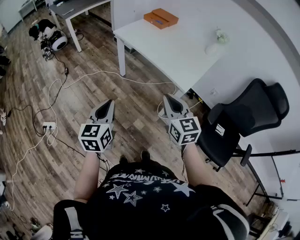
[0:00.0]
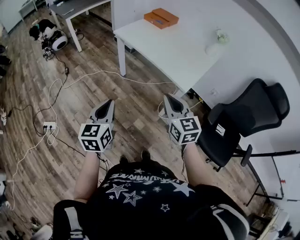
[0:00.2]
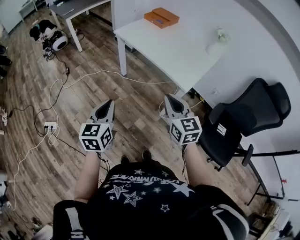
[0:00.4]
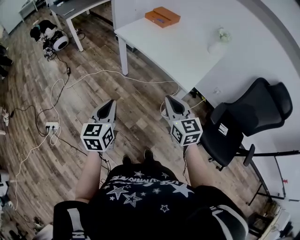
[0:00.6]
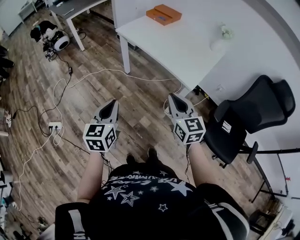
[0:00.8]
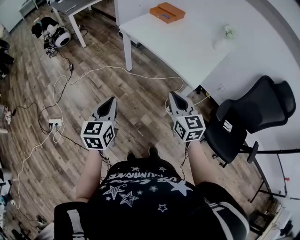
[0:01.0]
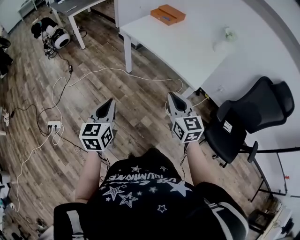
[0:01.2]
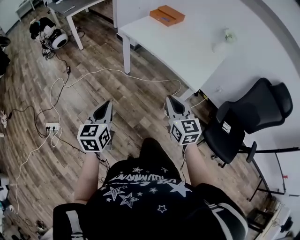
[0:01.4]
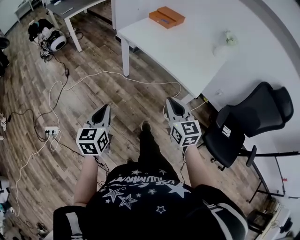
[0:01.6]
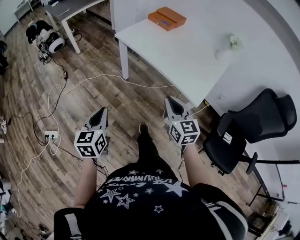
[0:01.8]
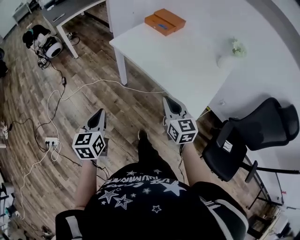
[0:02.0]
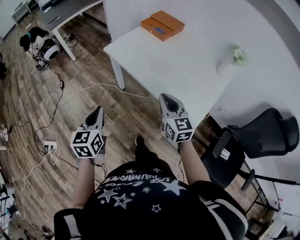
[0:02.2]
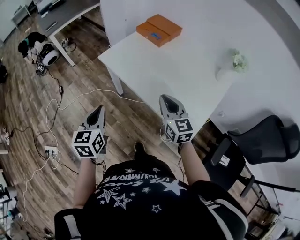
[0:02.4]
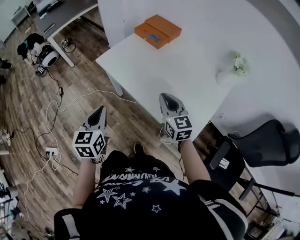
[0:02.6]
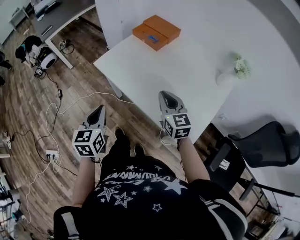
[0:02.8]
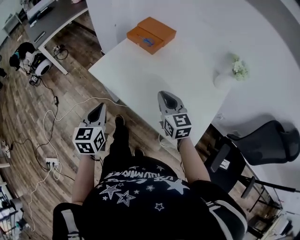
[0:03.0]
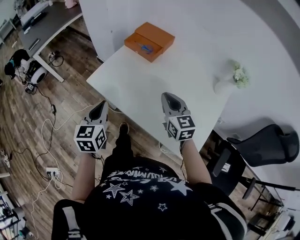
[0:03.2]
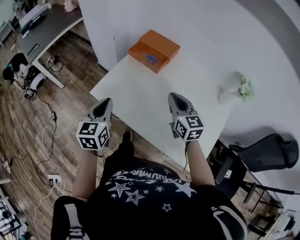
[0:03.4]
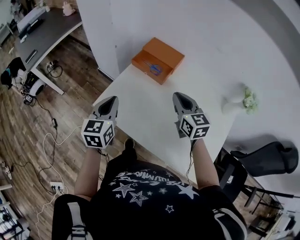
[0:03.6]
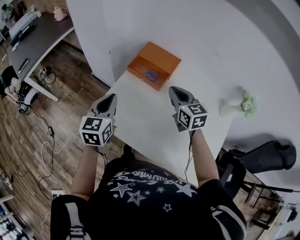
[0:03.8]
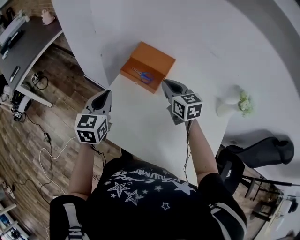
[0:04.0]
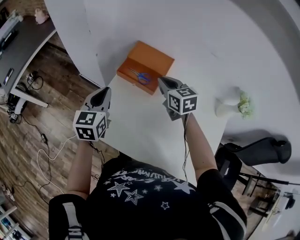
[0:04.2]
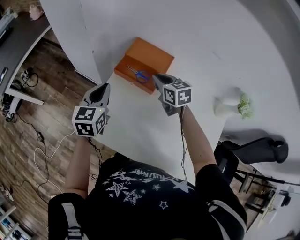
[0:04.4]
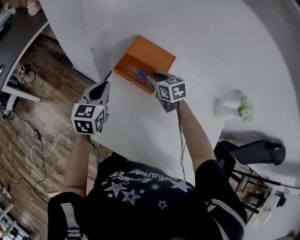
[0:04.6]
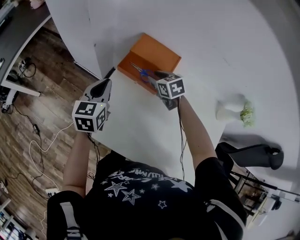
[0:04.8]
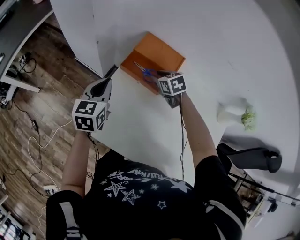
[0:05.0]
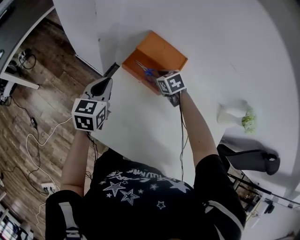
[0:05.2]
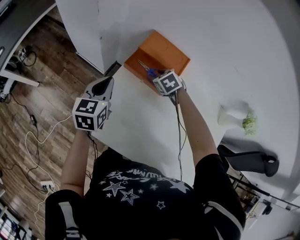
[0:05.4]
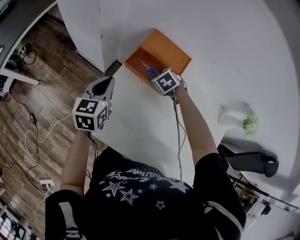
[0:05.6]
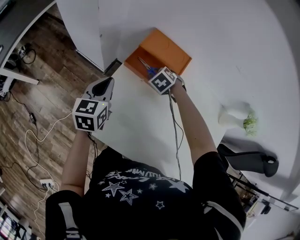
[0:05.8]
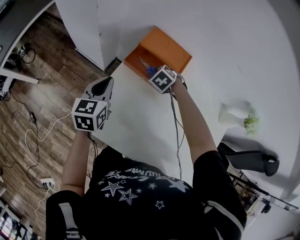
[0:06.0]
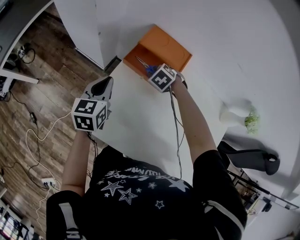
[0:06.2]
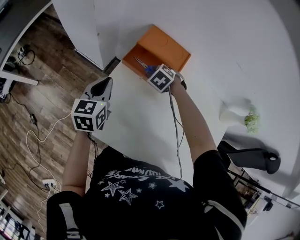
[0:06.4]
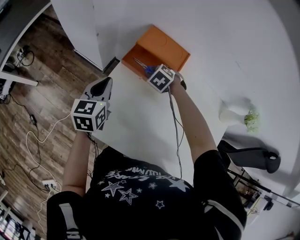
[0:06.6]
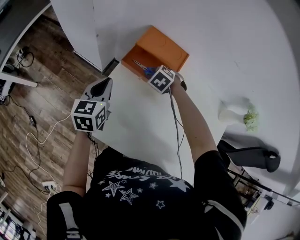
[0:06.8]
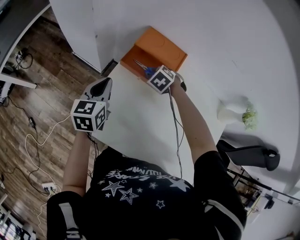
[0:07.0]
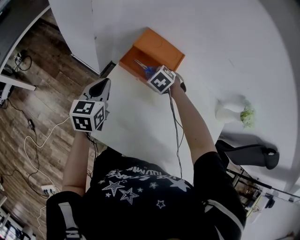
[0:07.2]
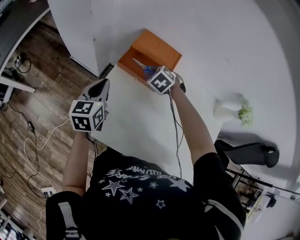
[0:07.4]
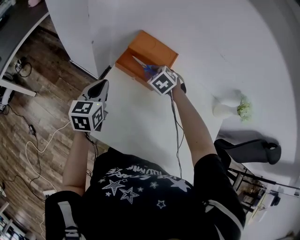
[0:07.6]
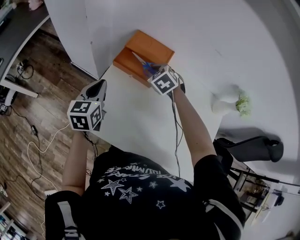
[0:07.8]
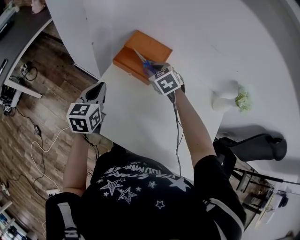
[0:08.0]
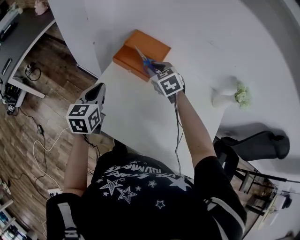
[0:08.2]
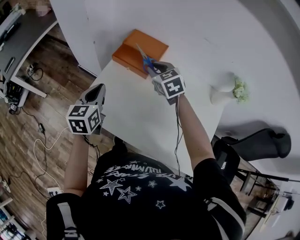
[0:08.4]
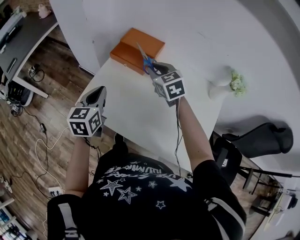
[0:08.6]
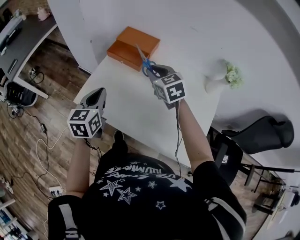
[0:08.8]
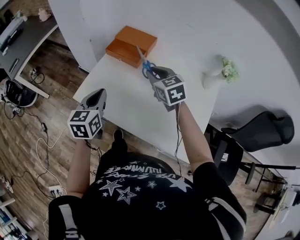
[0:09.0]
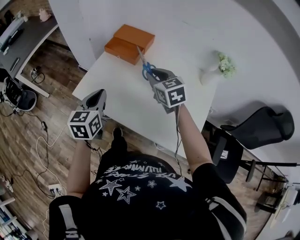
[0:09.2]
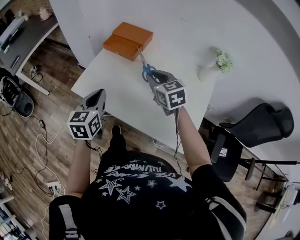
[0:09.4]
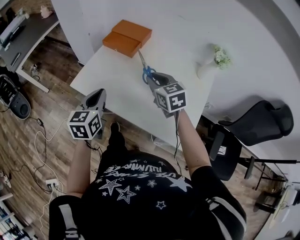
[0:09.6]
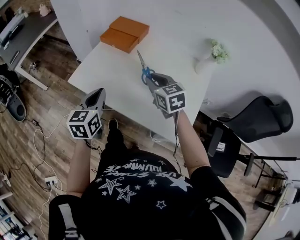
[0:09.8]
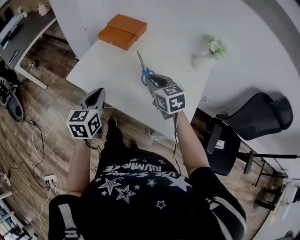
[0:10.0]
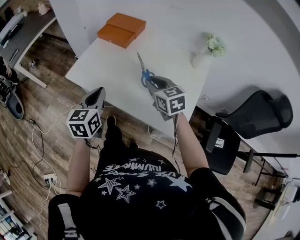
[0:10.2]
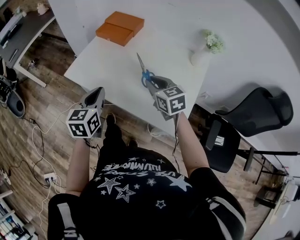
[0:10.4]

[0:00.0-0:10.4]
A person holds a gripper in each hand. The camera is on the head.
0:00.0 to 0:01.4: The grippers both shift to the left by roughly 10 cm.
0:01.4 to 0:03.0: The two grippers travel together, forward, about 50 cm.
0:03.0 to 0:04.4: Both grippers are carried forward, some 40 cm.
0:04.4 to 0:06.0: The left gripper shifts about 10 cm downward. The right gripper is displaced downward by approximately 15 cm, and tilts its fingers some 40 degrees downward.
0:06.0 to 0:07.4: The right gripper moves upward, approximately 5 cm.
0:07.4 to 0:09.0: The left gripper shifts about 30 cm backward and to the right, while the right gripper goes about 30 cm backward and upward, and angles its fingers upward, by approximately 40 degrees.
0:09.0 to 0:10.4: The left gripper heads backward and to the right, covering roughly 20 cm; the right gripper travels backward by roughly 20 cm.

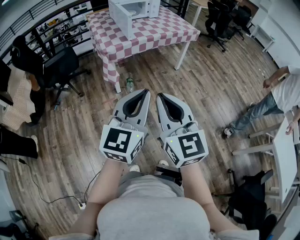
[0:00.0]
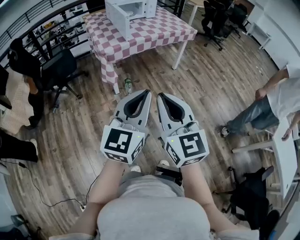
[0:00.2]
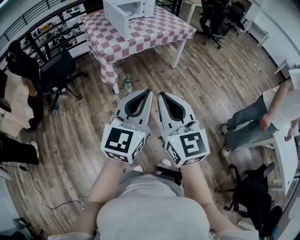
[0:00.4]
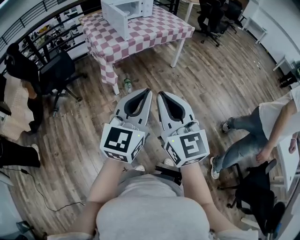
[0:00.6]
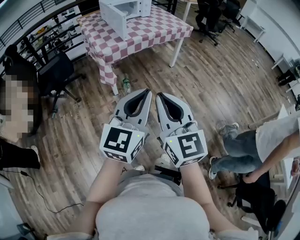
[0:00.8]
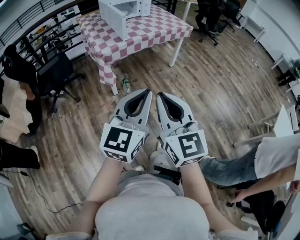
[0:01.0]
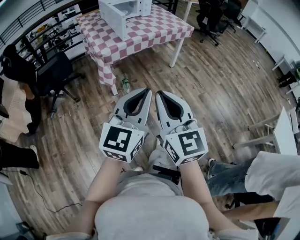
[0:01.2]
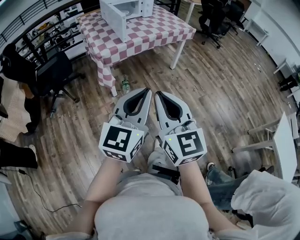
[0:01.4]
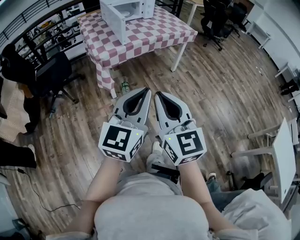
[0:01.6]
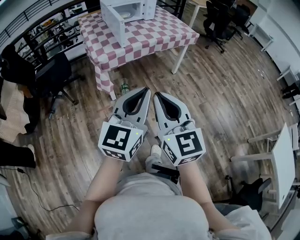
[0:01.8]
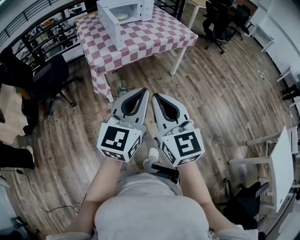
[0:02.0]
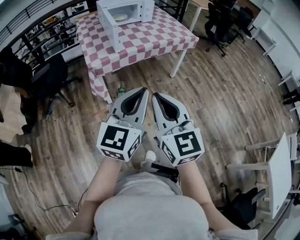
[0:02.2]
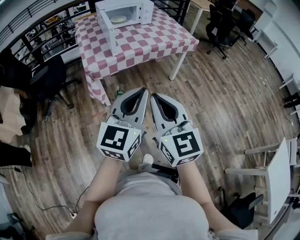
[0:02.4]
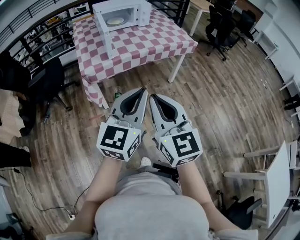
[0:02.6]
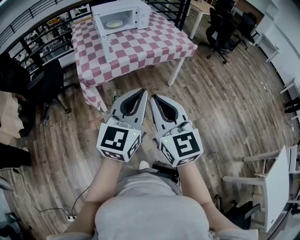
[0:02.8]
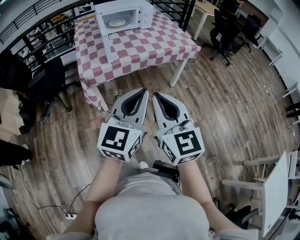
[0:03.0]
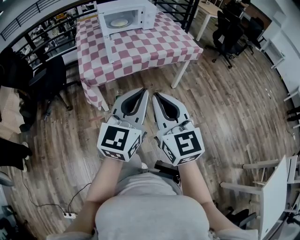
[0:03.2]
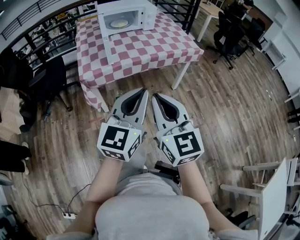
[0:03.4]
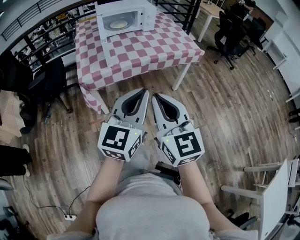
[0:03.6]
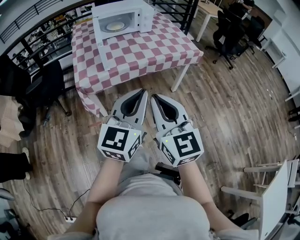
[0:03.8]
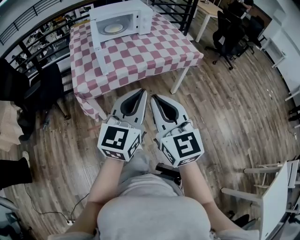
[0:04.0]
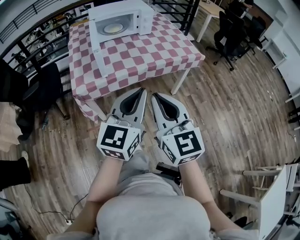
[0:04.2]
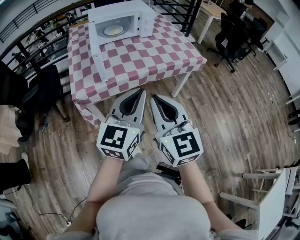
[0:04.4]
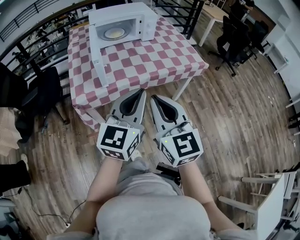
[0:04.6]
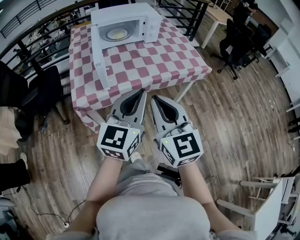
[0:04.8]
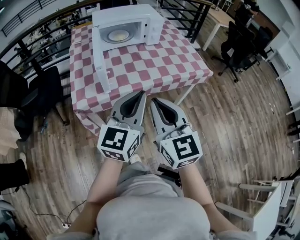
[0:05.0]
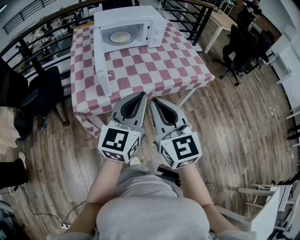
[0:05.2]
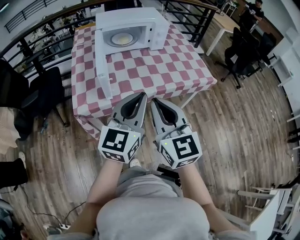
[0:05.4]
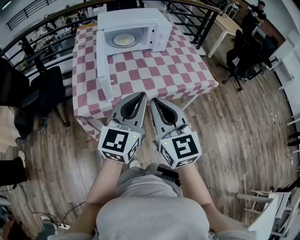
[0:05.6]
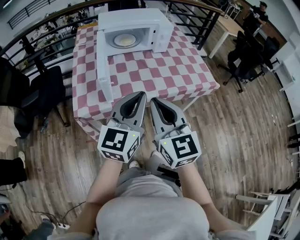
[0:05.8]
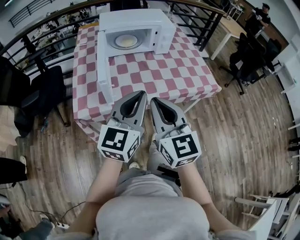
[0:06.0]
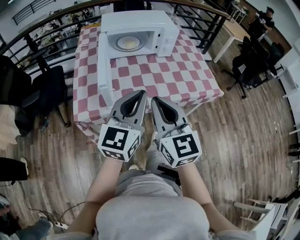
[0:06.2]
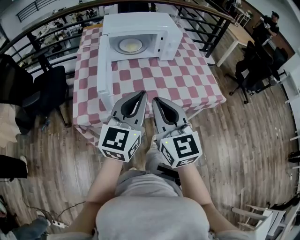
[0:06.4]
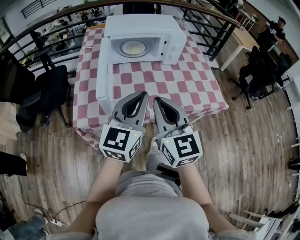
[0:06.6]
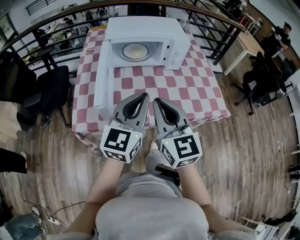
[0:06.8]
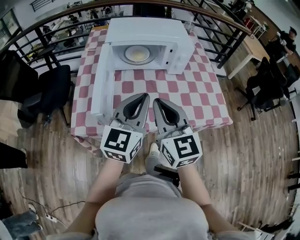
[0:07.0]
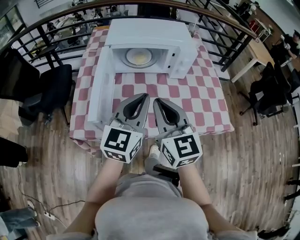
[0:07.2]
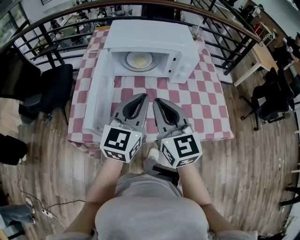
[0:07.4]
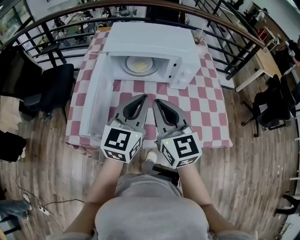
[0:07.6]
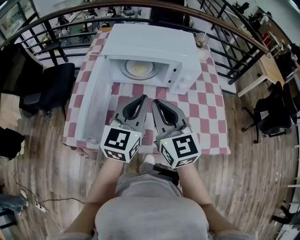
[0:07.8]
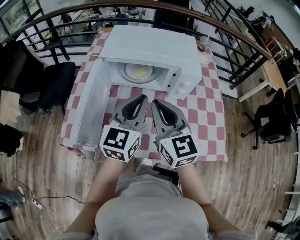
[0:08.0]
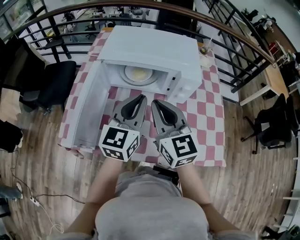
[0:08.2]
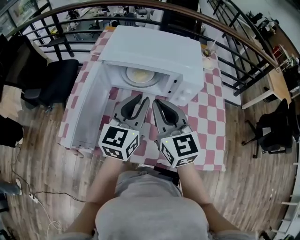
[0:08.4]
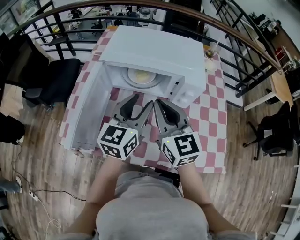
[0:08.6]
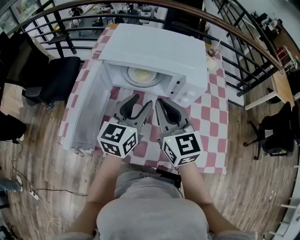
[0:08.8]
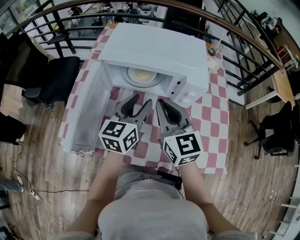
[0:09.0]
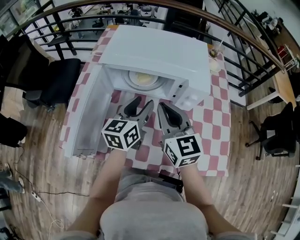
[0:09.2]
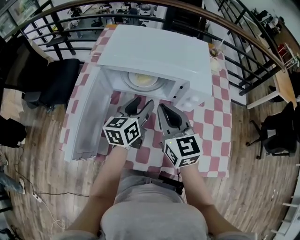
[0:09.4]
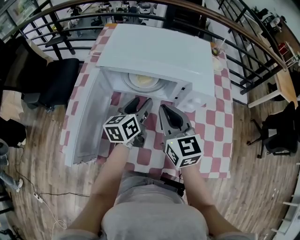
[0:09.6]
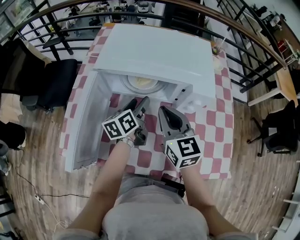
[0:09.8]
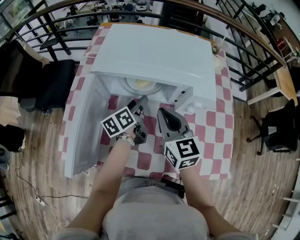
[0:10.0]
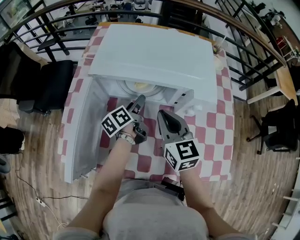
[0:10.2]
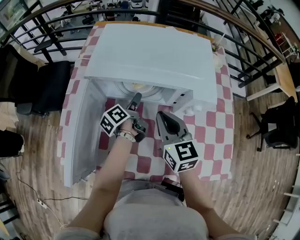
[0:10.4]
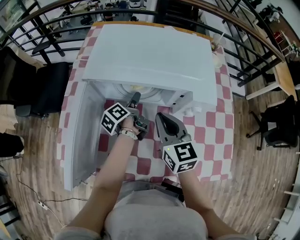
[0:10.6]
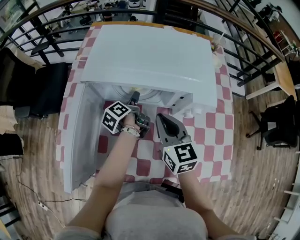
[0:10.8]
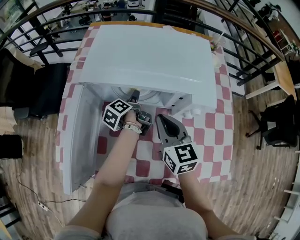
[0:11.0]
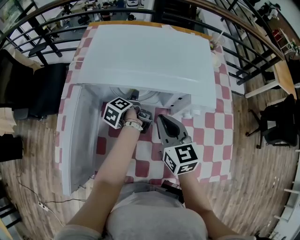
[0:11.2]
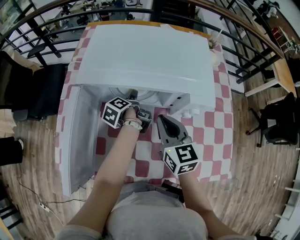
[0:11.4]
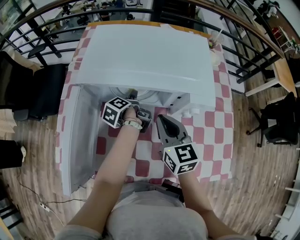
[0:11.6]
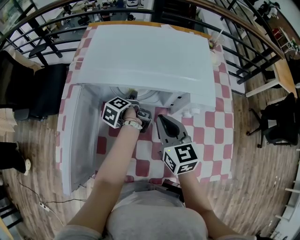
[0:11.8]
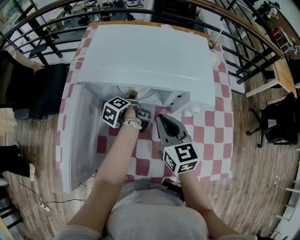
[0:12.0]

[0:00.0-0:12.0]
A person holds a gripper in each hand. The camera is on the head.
0:00.0 to 0:01.6: Both grippers travel together forward, some 10 cm.
0:01.6 to 0:03.0: Both grippers travel together forward and to the right, approximately 25 cm.
0:03.0 to 0:04.4: Both grippers travel together forward, some 20 cm.
0:04.4 to 0:06.0: The two grippers go some 15 cm forward.
0:06.0 to 0:07.6: The grippers both shift forward by some 25 cm.
0:07.6 to 0:09.0: The left gripper heads forward and downward, covering approximately 15 cm, and opens. The right gripper travels forward by some 10 cm.
0:09.0 to 0:10.4: The left gripper travels downward and forward by approximately 20 cm, rotates around the line of its fingers by roughly 60 degrees, counterclockwise from behind, and opens; the right gripper goes approximately 10 cm downward and forward.
0:10.4 to 0:12.0: The left gripper swivels roughly 20 degrees.

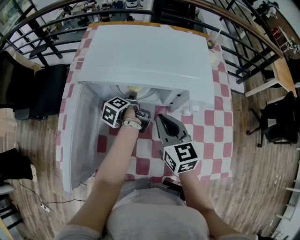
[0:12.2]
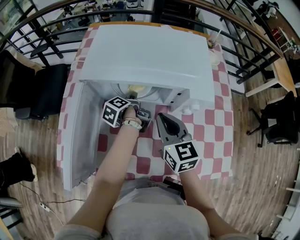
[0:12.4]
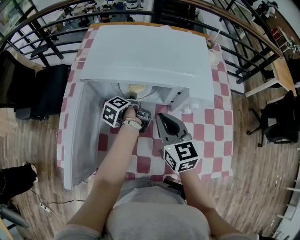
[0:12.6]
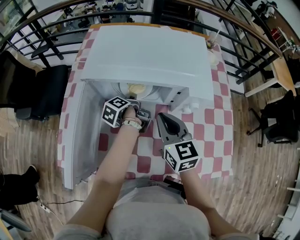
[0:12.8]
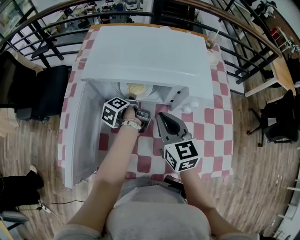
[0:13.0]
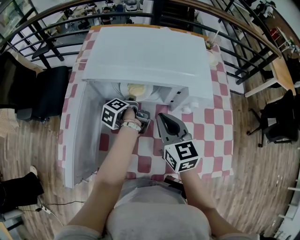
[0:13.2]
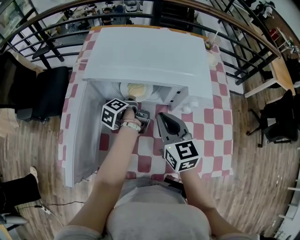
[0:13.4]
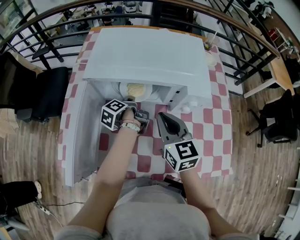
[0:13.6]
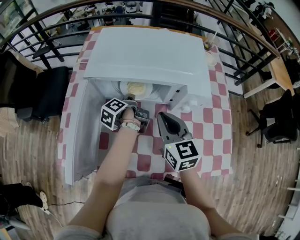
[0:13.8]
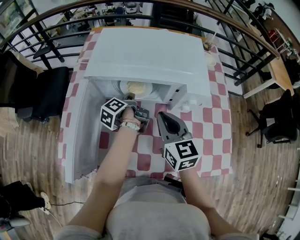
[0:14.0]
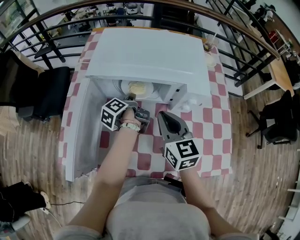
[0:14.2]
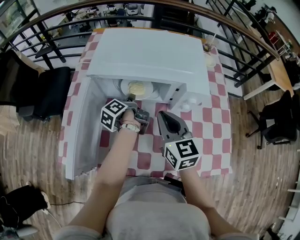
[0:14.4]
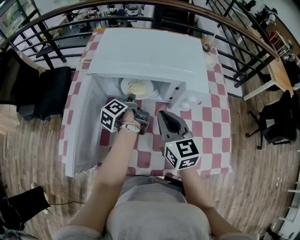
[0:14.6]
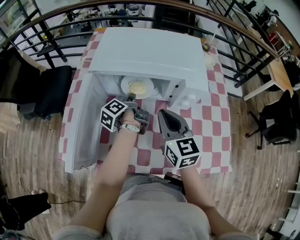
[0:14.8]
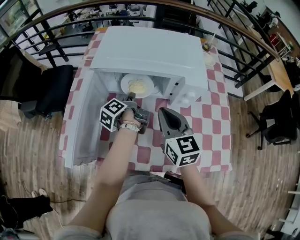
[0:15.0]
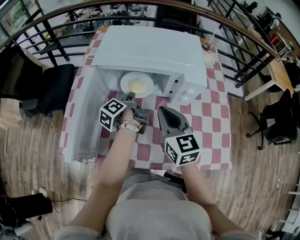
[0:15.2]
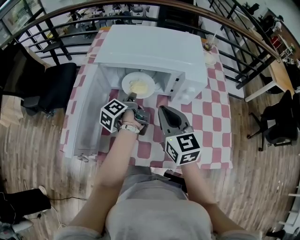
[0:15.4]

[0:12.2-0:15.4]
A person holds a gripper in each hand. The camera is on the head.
0:12.2 to 0:13.8: The left gripper closes up.
0:13.8 to 0:15.4: The right gripper ends up roughly 5 cm from where it was. Meanwhile the left gripper heads backward, covering roughly 5 cm.
